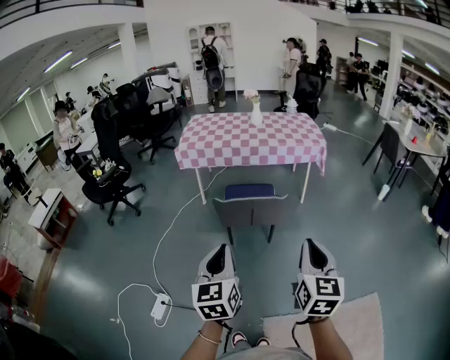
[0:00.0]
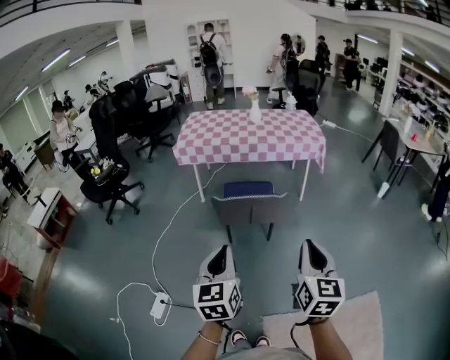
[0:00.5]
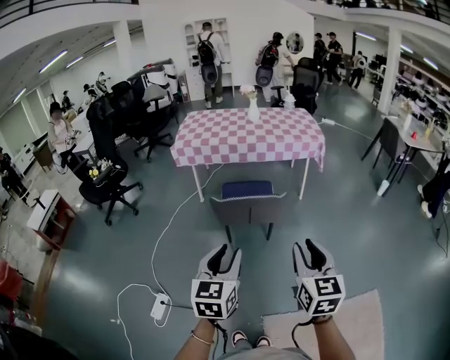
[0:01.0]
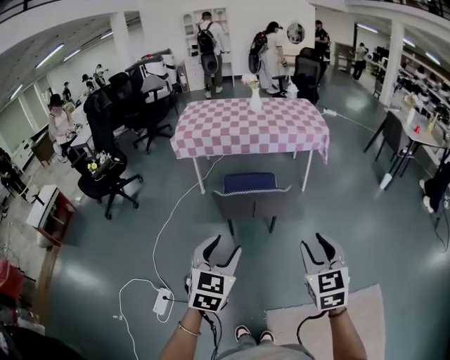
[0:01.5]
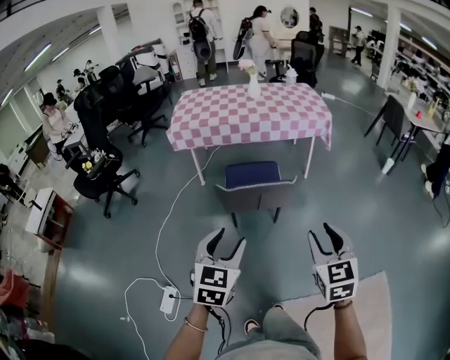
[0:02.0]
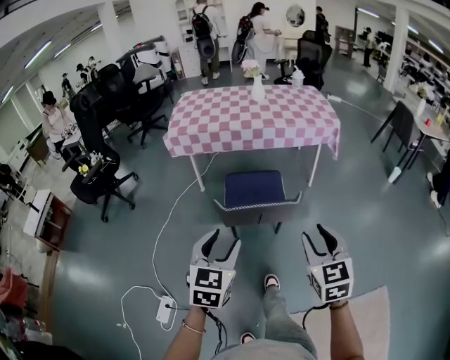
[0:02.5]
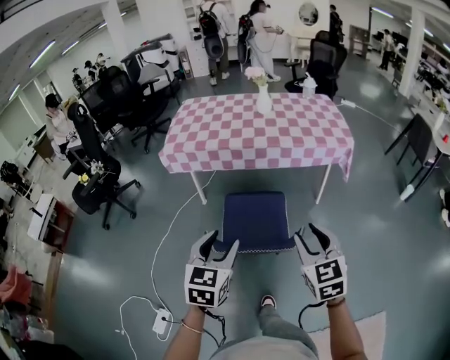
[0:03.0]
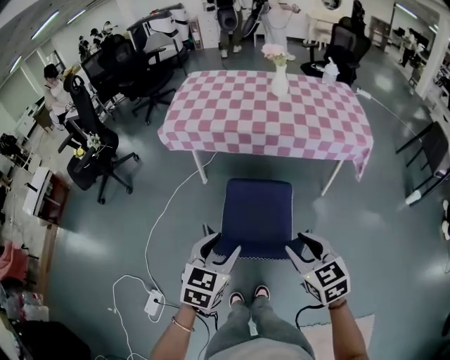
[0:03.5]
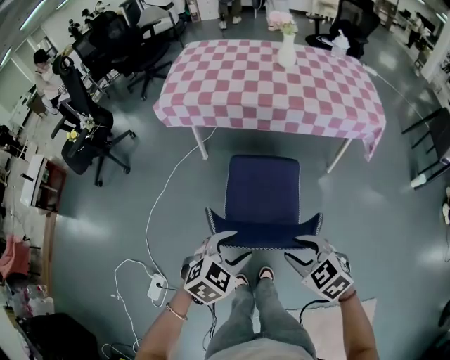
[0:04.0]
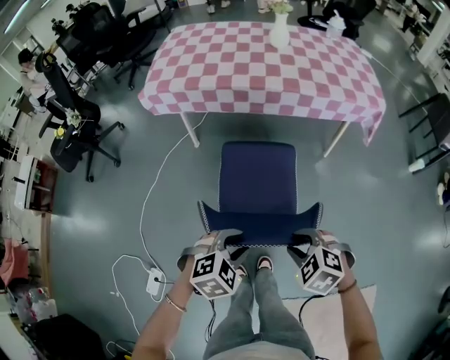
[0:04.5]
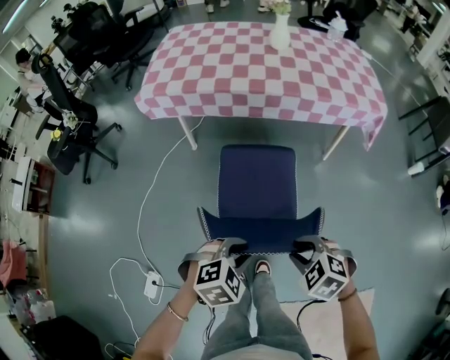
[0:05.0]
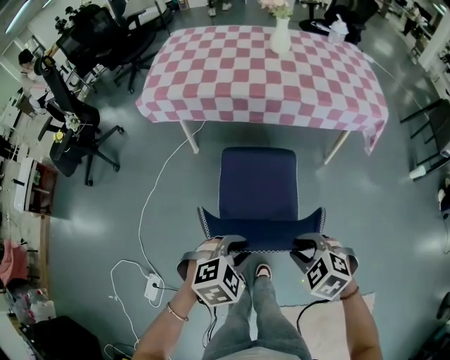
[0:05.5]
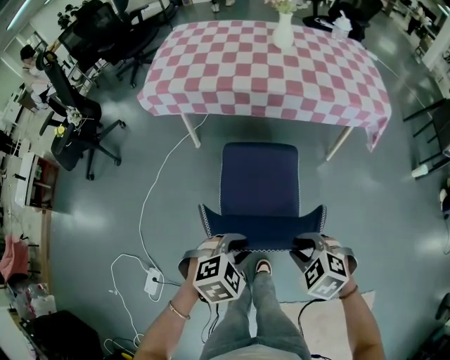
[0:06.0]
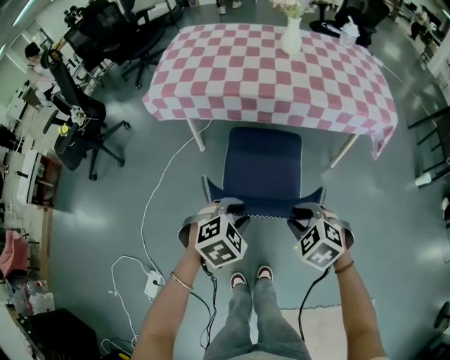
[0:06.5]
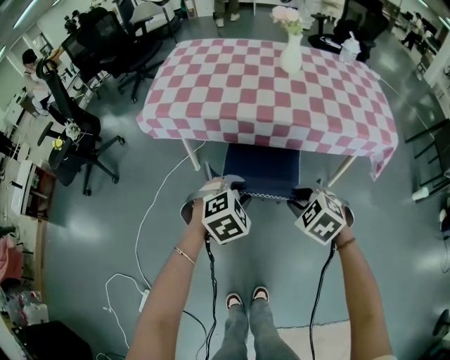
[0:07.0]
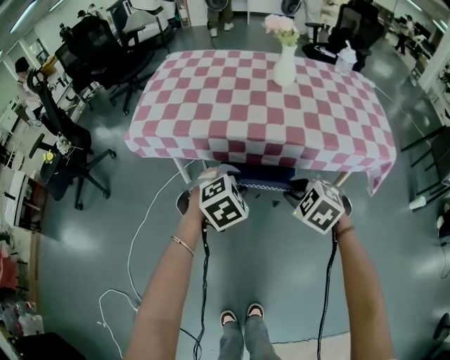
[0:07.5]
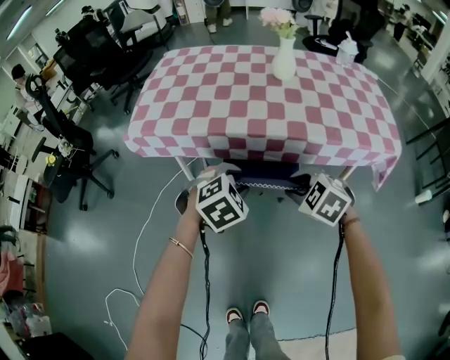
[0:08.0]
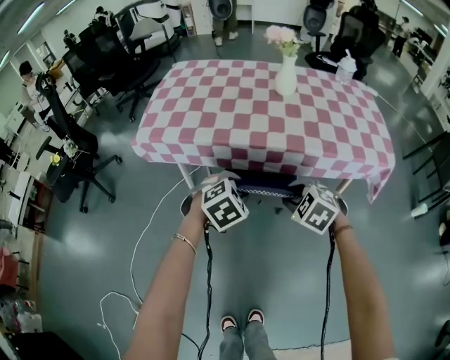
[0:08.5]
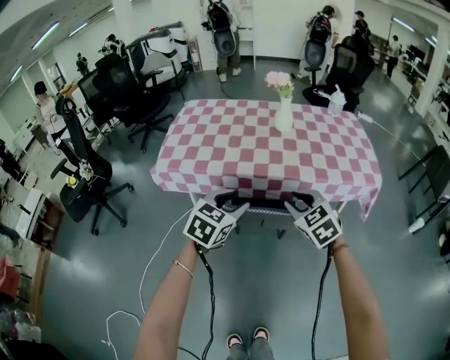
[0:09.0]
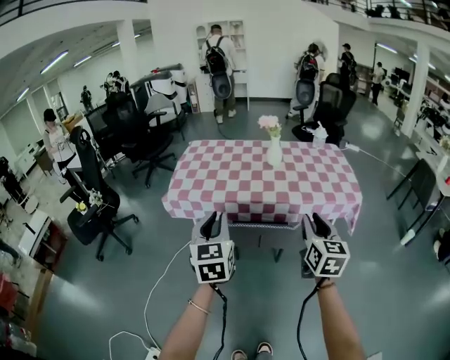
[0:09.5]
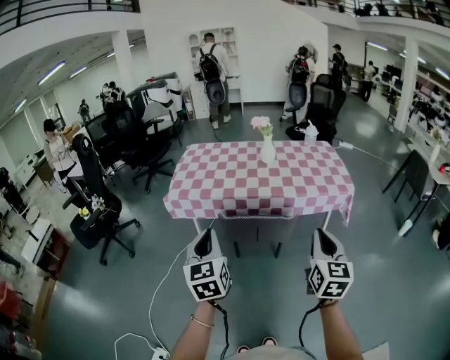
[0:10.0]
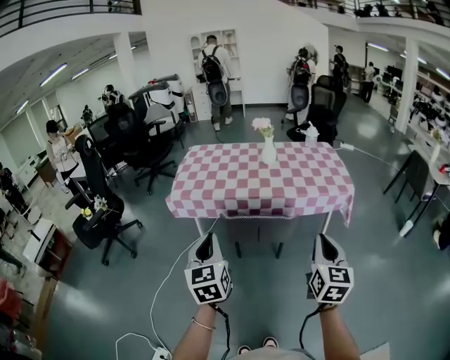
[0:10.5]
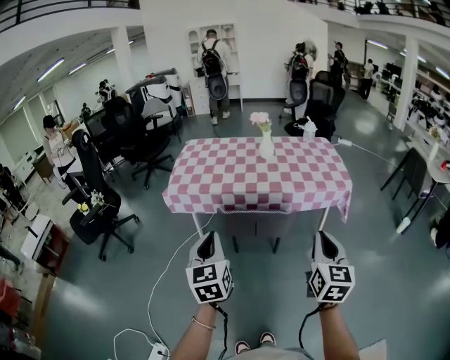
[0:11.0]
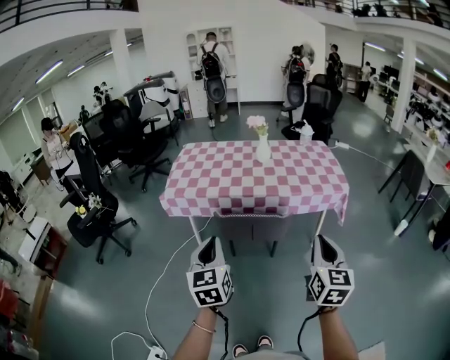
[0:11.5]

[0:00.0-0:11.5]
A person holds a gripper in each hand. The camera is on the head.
0.0 to 2.0 s: The left gripper moves forward, approximately 10 cm, swivels some 30 degrees, and opens. The right gripper shifts approximately 10 cm forward and downward, swivels about 20 degrees, and opens its fingers.
2.0 to 4.0 s: Both grippers travel together forward and downward, about 35 cm. The left gripper turns by roughly 30 degrees. The right gripper rotates roughly 50 degrees.
4.0 to 6.0 s: The two grippers go roughly 5 cm downward. The left gripper closes.
6.0 to 7.5 s: Both grippers travel together forward, approximately 35 cm.
7.5 to 9.5 s: Both grippers move upward and backward, some 30 cm. The left gripper points its fingers about 50 degrees further upward, and closes, while the right gripper tilts its fingers approximately 50 degrees upward.
9.5 to 11.5 s: Both grippers travel together backward, approximately 15 cm. The right gripper closes.

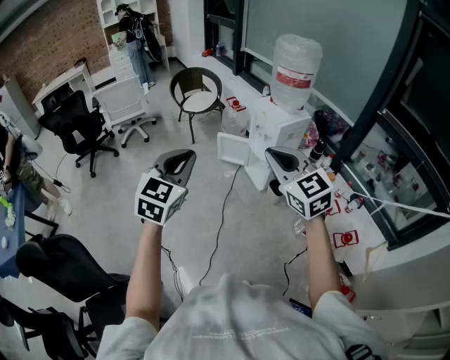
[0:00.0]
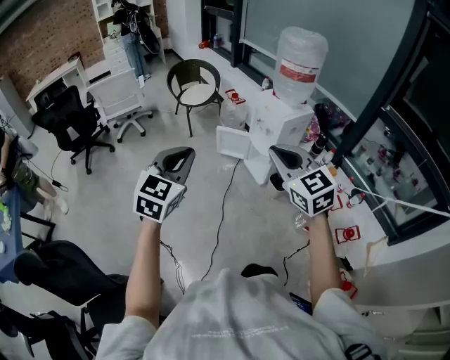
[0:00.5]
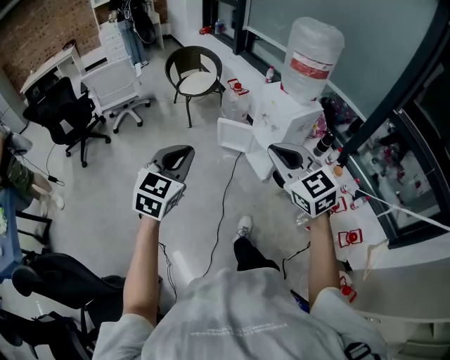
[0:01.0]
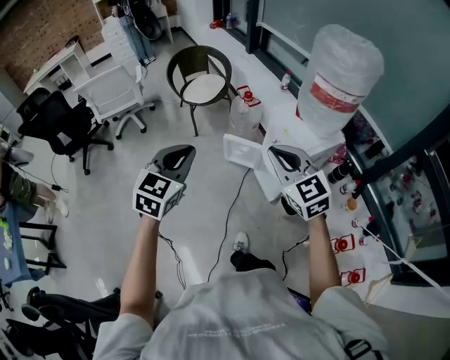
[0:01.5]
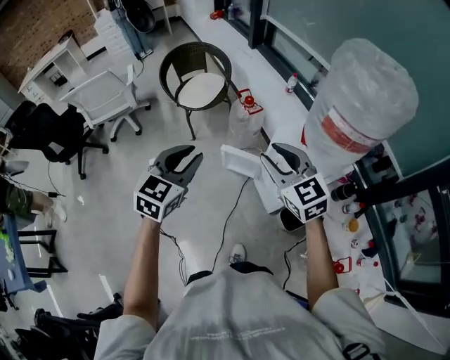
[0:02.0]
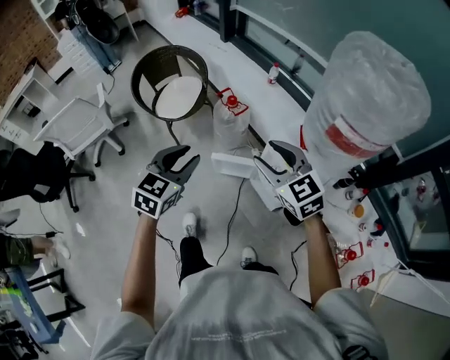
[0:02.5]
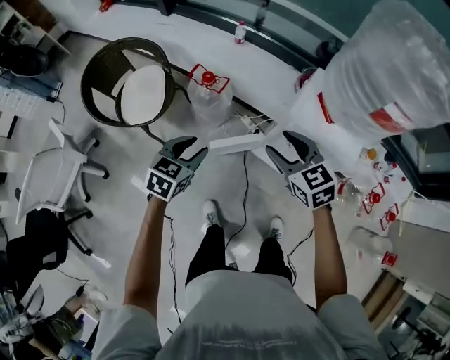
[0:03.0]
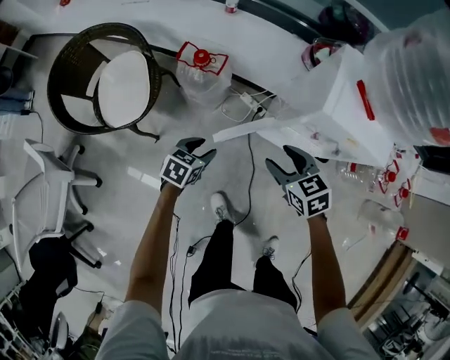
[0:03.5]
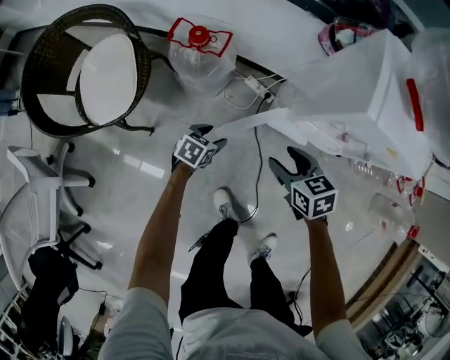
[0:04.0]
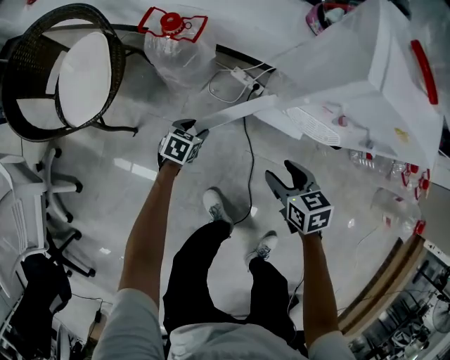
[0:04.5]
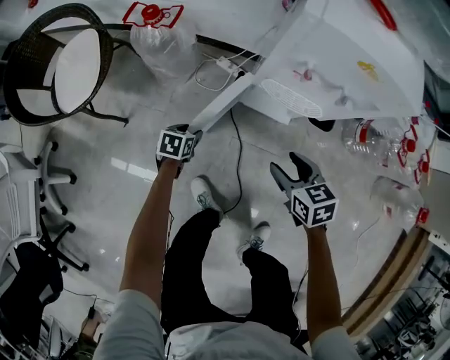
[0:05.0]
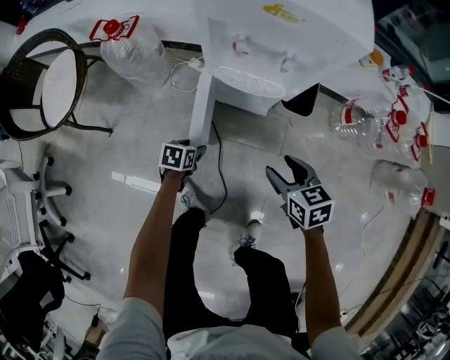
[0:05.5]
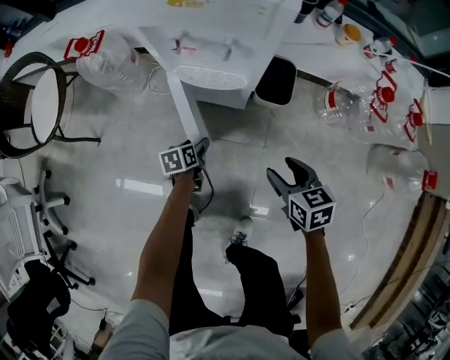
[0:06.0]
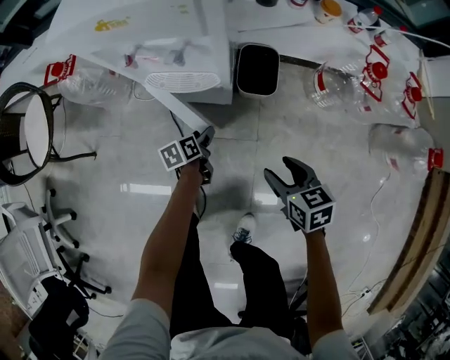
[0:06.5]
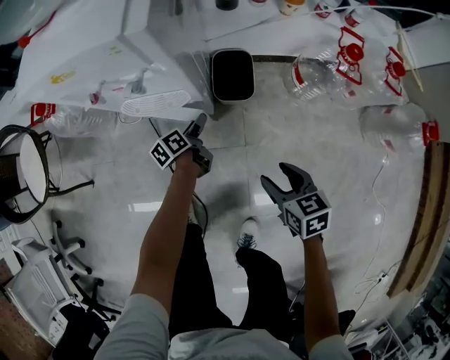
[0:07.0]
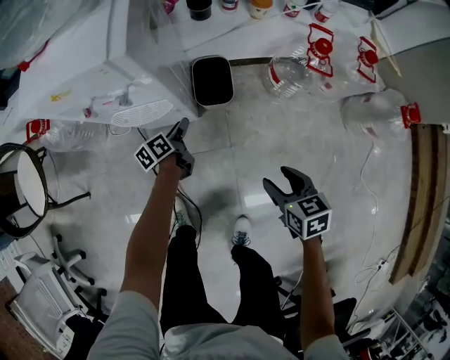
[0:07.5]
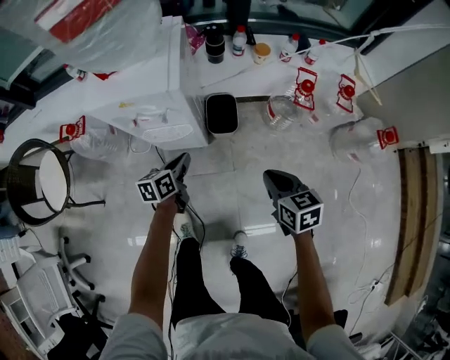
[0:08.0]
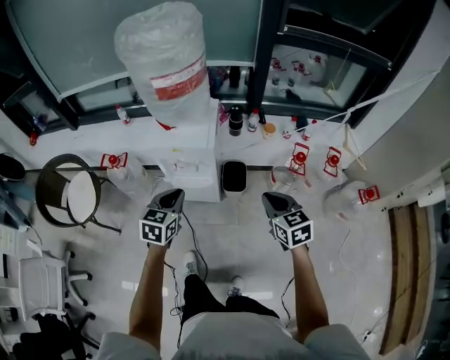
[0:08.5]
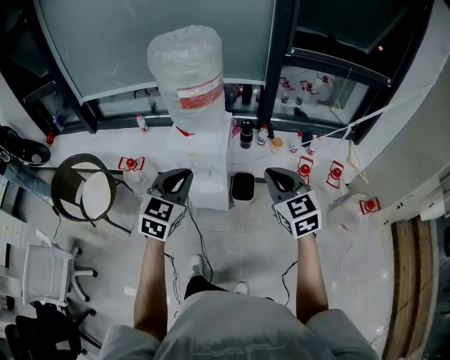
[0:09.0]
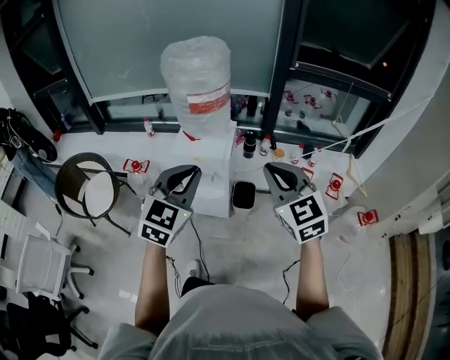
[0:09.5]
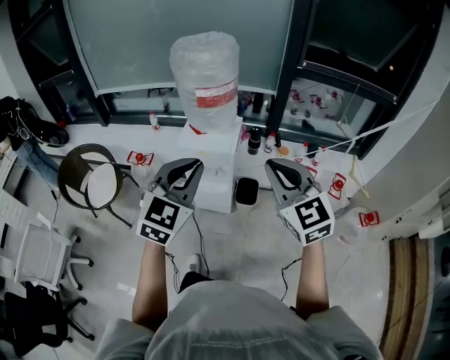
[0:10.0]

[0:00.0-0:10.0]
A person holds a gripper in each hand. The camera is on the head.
0.0 to 2.0 s: The pair of grippers is taken forward, some 60 cm. The right gripper opens up.
2.0 to 4.0 s: Both grippers travel together downward, about 60 cm. The right gripper tips its fingers downward by some 30 degrees, and opens its fingers. The left gripper changes its angle by some 70 degrees, and opens up.
4.0 to 6.0 s: The left gripper travels to the right by roughly 35 cm, and rotates some 30 degrees, while the right gripper travels to the right and backward by approximately 50 cm.
6.0 to 8.0 s: The grippers both shift upward and to the right by about 25 cm. The left gripper turns by approximately 30 degrees, and closes up; the right gripper closes.
8.0 to 10.0 s: Both grippers move upward, about 50 cm. The right gripper twists roughly 50 degrees counterclockwise, seen from behind. The left gripper twists approximately 60 degrees clockwise, seen from behind.

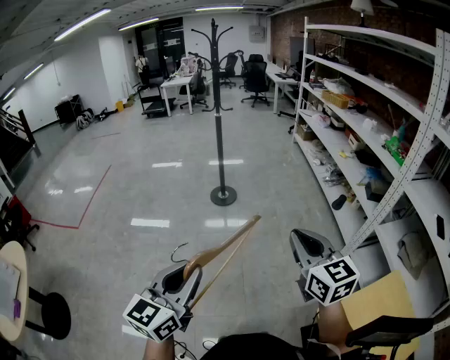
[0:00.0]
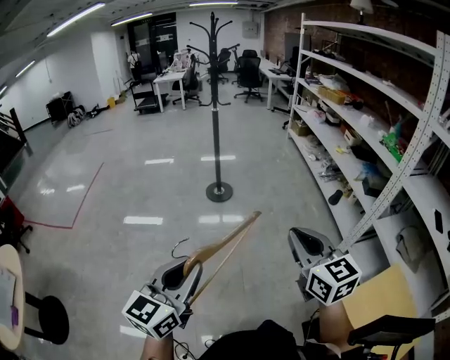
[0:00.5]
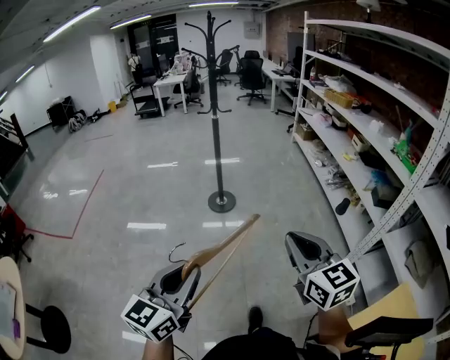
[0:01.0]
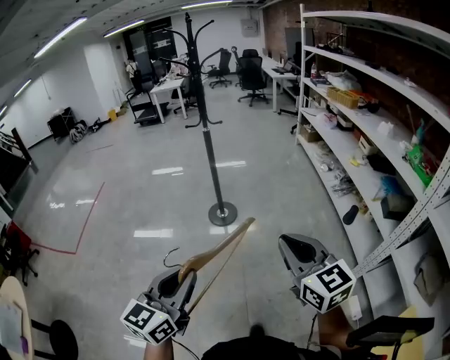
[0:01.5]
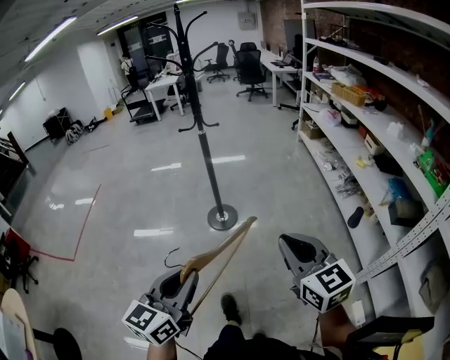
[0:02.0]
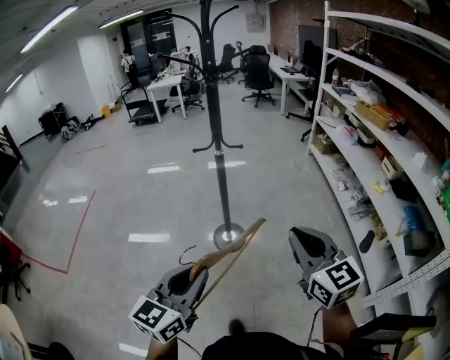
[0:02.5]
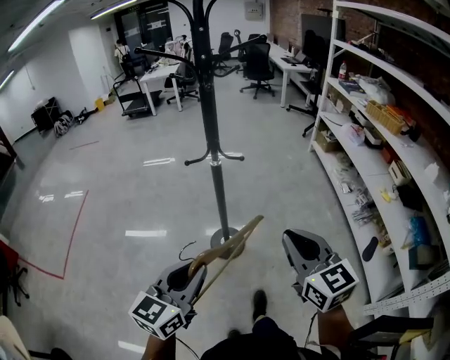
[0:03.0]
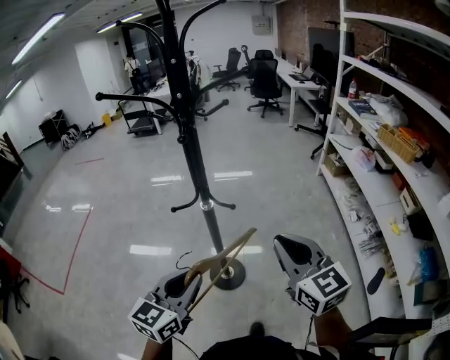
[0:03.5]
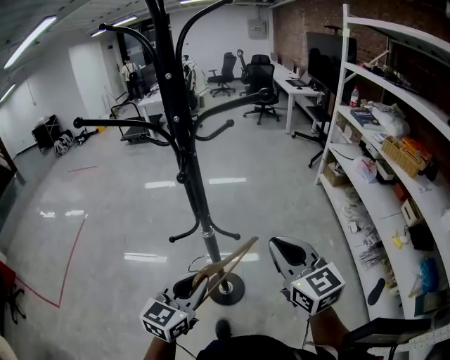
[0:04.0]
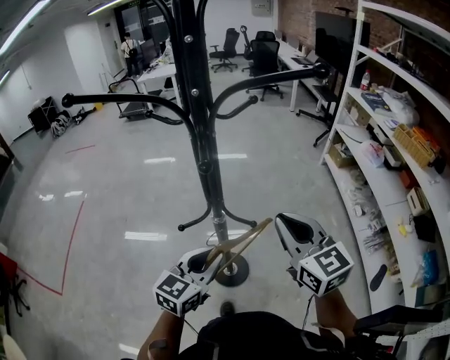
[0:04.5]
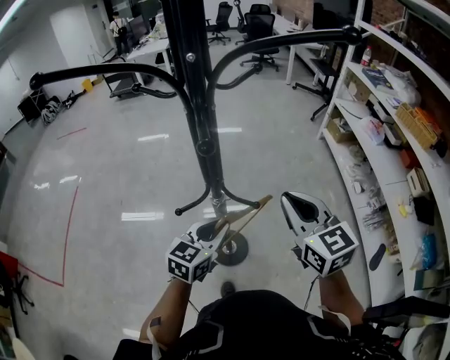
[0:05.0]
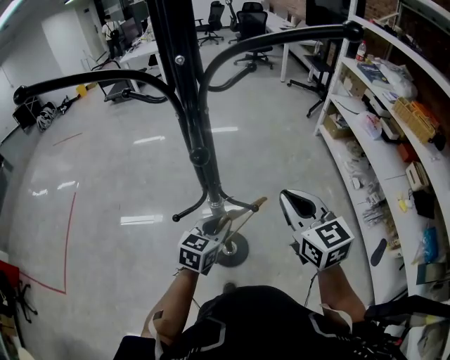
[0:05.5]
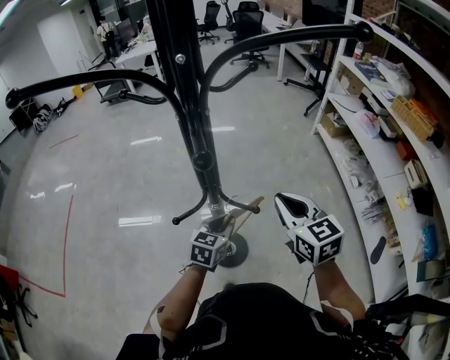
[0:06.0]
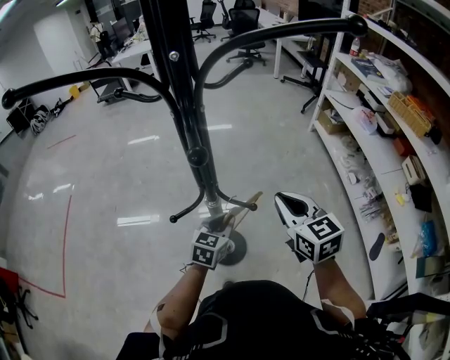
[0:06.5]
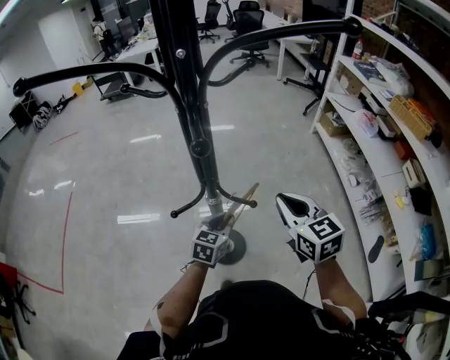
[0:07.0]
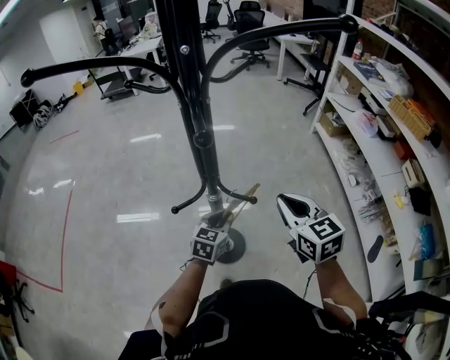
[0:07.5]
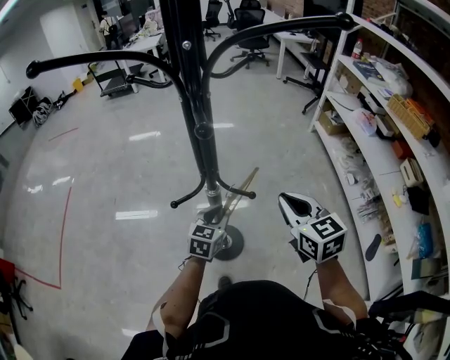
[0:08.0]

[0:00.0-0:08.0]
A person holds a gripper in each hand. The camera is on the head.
0.0 to 2.0 s: Both grippers move forward, about 35 cm.
2.0 to 4.0 s: The two grippers travel together, forward, about 60 cm.
4.0 to 6.0 s: The right gripper travels forward and downward by roughly 15 cm, while the left gripper is displaced downward and forward by approximately 25 cm.
6.0 to 8.0 s: The grippers move only a little.
